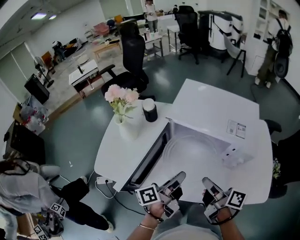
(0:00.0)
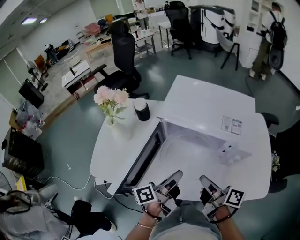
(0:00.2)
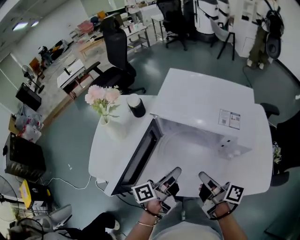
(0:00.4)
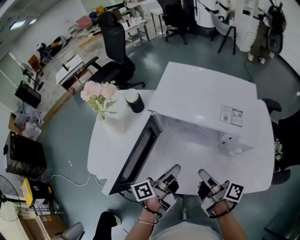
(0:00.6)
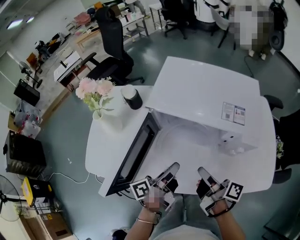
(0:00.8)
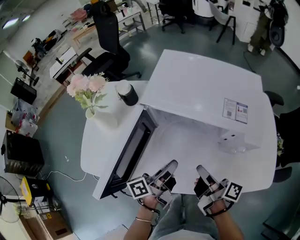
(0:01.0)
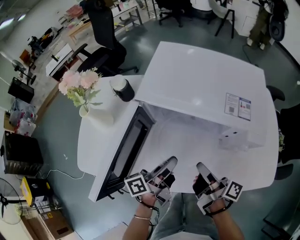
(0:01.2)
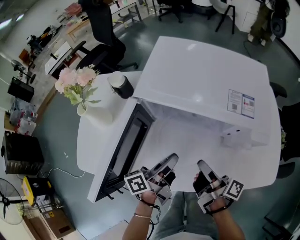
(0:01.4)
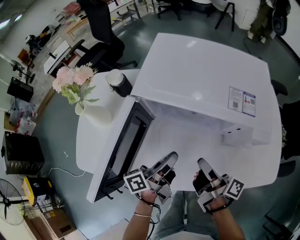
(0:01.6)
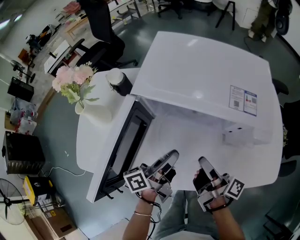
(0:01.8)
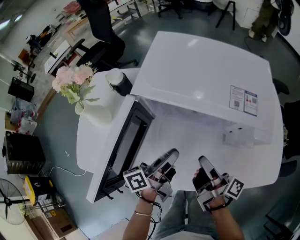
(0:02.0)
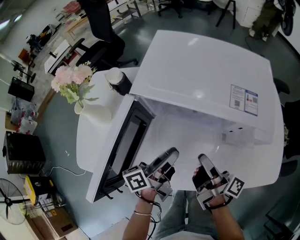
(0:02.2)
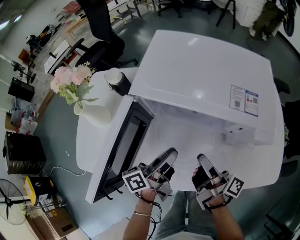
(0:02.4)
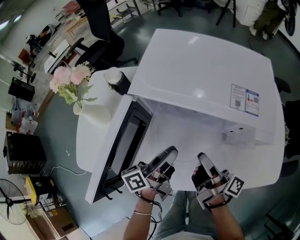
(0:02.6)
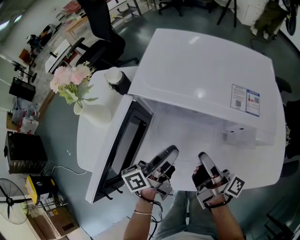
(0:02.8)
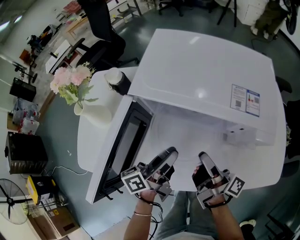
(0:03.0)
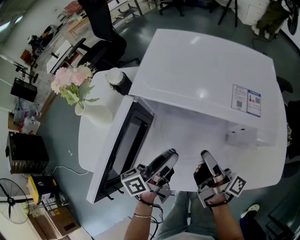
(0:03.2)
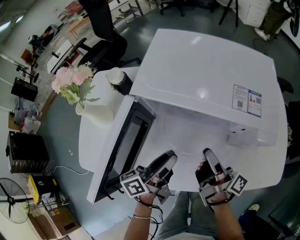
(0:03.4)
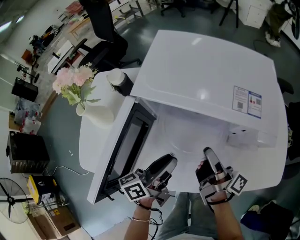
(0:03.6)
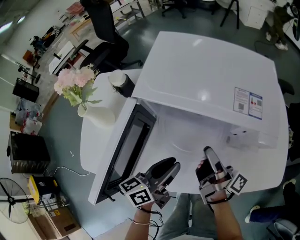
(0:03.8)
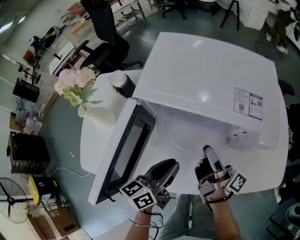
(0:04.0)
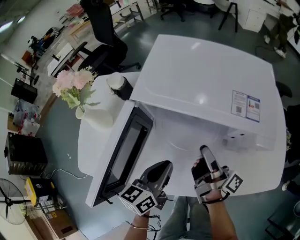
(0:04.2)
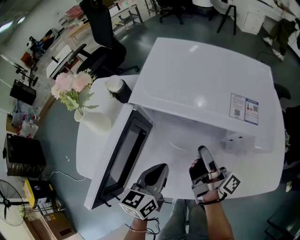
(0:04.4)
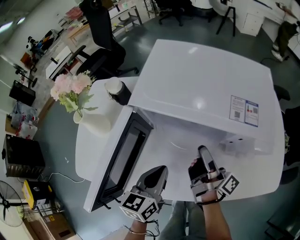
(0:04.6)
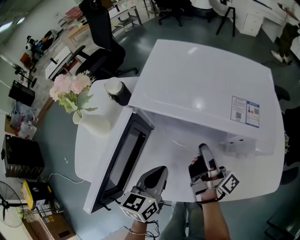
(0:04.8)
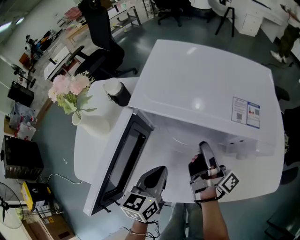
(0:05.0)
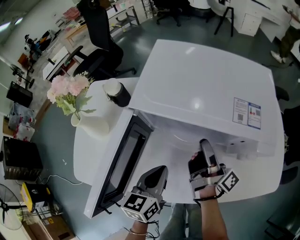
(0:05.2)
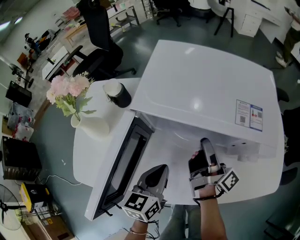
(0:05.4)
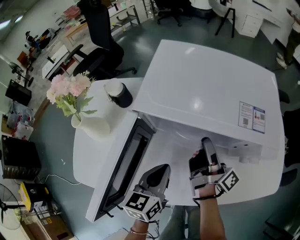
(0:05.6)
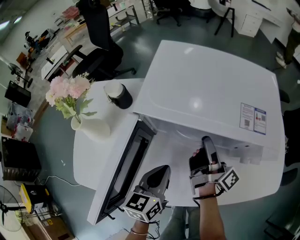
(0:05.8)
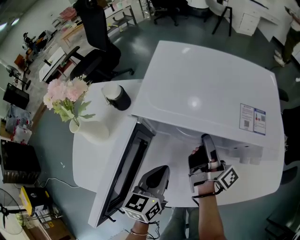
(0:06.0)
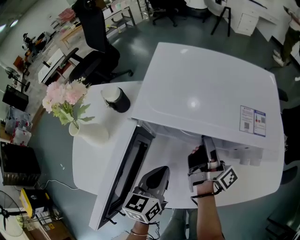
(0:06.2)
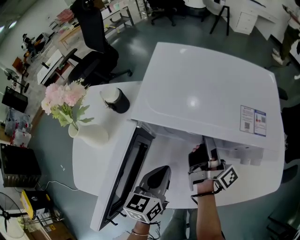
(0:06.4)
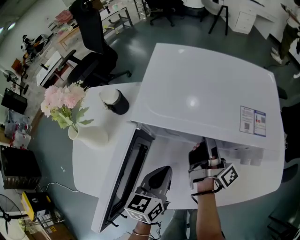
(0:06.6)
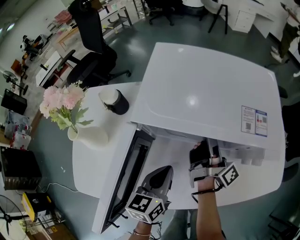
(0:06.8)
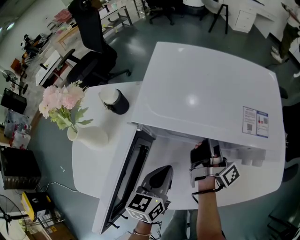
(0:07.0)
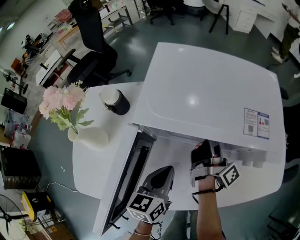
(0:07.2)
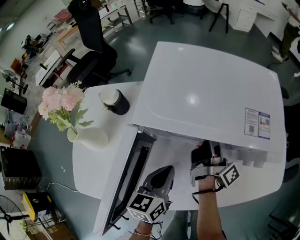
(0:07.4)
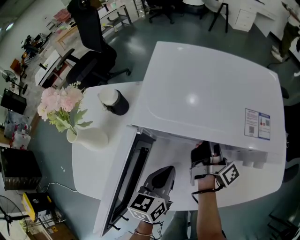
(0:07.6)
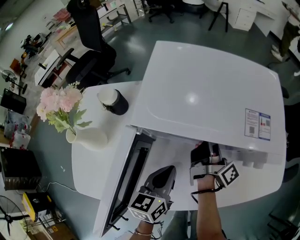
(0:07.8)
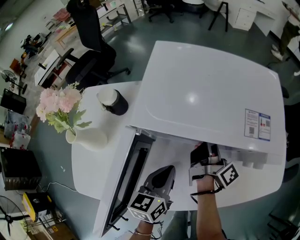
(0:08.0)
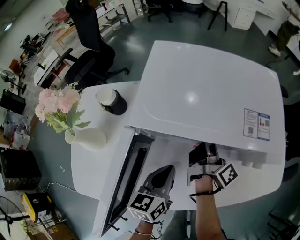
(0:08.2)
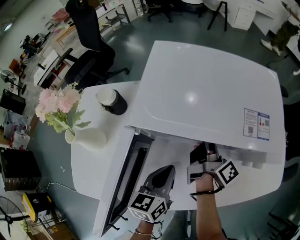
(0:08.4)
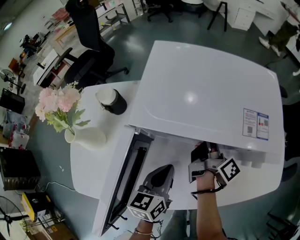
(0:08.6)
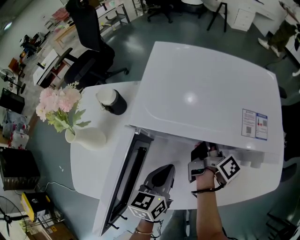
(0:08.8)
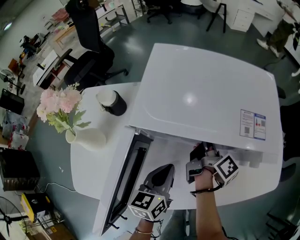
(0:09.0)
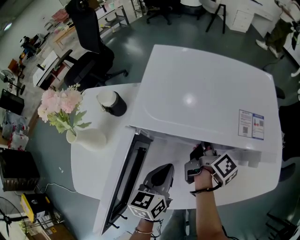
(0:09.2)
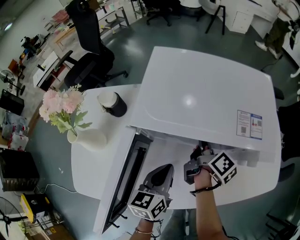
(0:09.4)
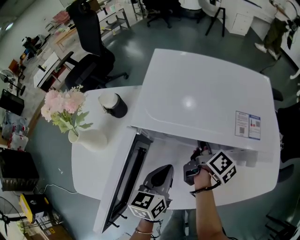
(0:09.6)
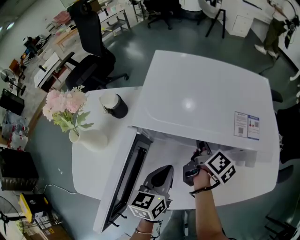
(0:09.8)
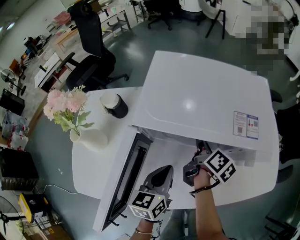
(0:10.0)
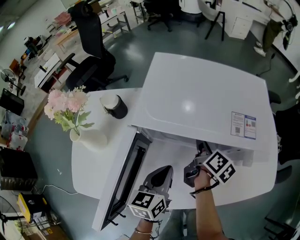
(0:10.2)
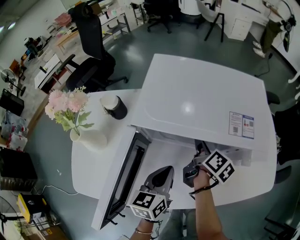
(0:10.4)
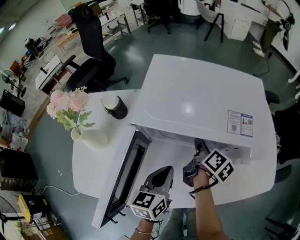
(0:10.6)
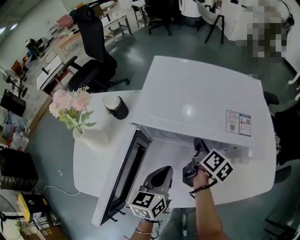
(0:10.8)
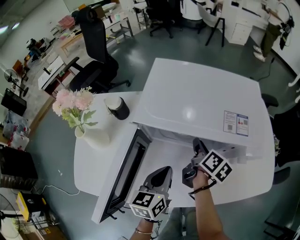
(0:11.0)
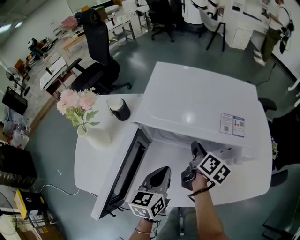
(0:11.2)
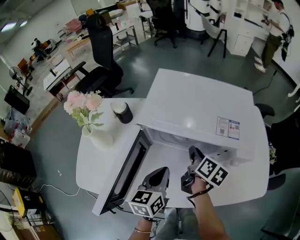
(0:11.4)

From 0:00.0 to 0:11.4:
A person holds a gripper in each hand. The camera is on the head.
From 0:00.0 to 0:01.4: The right gripper moves downward, some 10 cm, and swivels some 30 degrees. Meanwhile the left gripper moves downward and forward, some 10 cm.
From 0:01.4 to 0:02.8: The grippers stay close to where they were, moving slightly.
From 0:02.8 to 0:04.2: The left gripper swivels some 40 degrees, and closes its fingers.
From 0:04.2 to 0:05.6: The right gripper is displaced forward by some 5 cm.
From 0:05.6 to 0:07.2: The grippers move only a little.
From 0:07.2 to 0:08.6: The right gripper swivels about 20 degrees.
From 0:08.6 to 0:10.0: The right gripper changes its angle by about 30 degrees.
From 0:10.0 to 0:11.4: The right gripper shifts by some 5 cm.

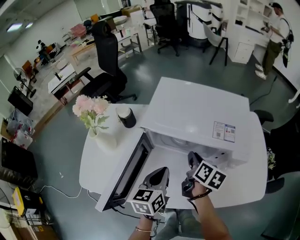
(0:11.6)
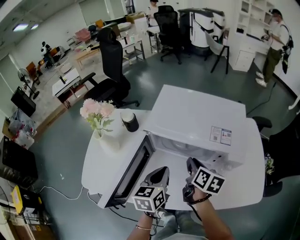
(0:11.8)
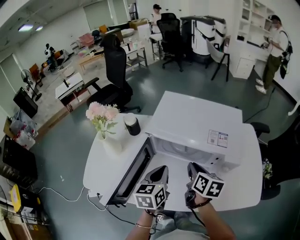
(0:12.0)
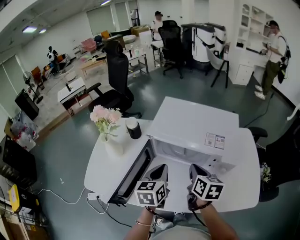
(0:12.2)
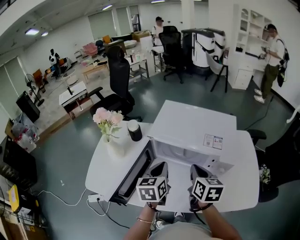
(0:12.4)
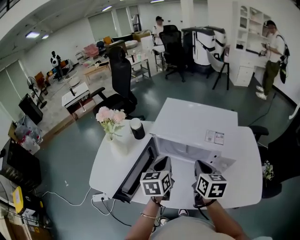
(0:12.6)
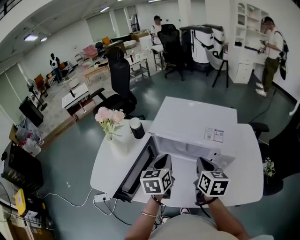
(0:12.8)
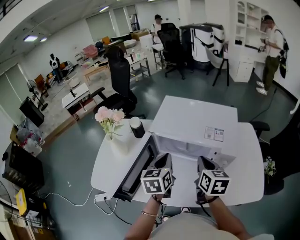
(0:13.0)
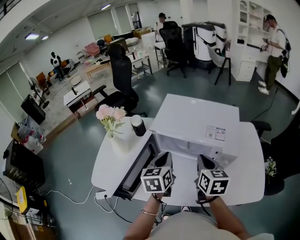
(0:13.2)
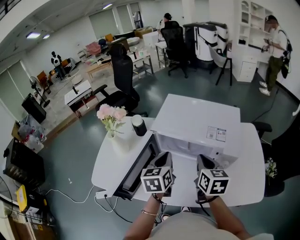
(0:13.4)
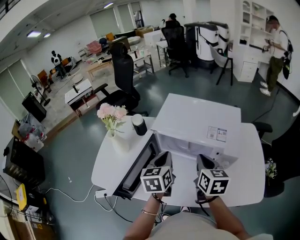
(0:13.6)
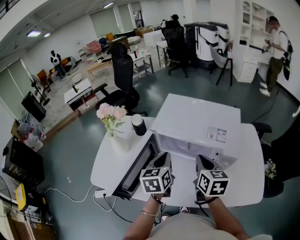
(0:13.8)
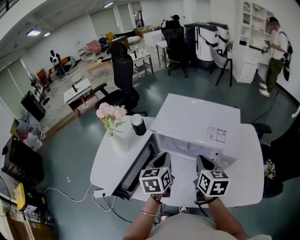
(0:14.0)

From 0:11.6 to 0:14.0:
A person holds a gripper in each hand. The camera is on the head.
From 0:11.6 to 0:12.8: The left gripper travels upward by some 10 cm. The right gripper shifts about 10 cm upward and backward, and turns by some 30 degrees.
From 0:12.8 to 0:14.0: Neither gripper changes place.

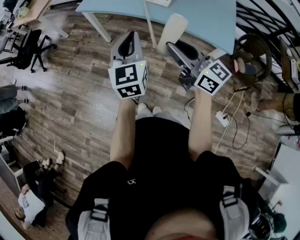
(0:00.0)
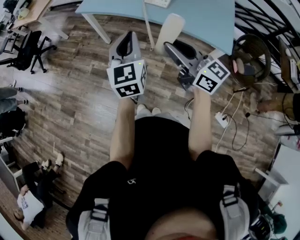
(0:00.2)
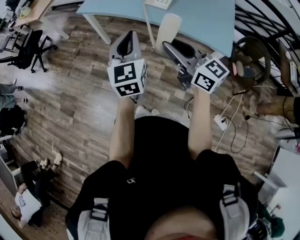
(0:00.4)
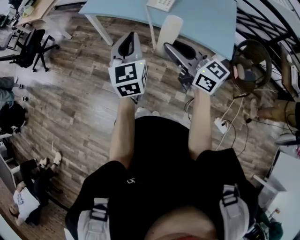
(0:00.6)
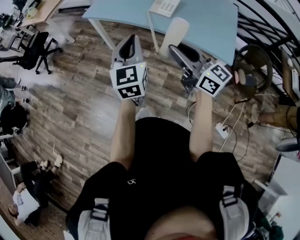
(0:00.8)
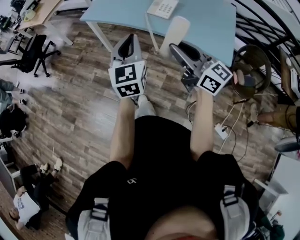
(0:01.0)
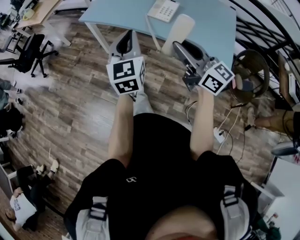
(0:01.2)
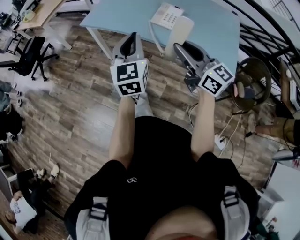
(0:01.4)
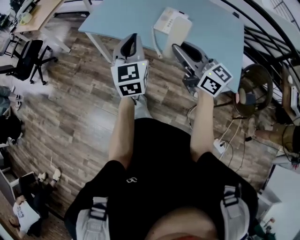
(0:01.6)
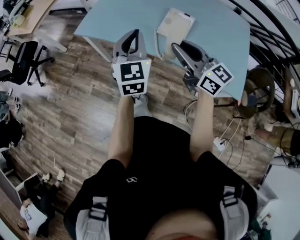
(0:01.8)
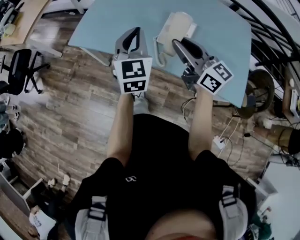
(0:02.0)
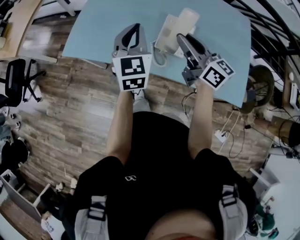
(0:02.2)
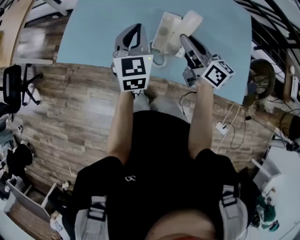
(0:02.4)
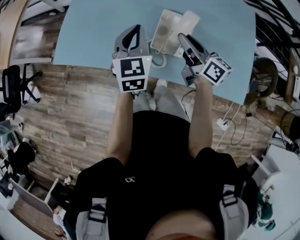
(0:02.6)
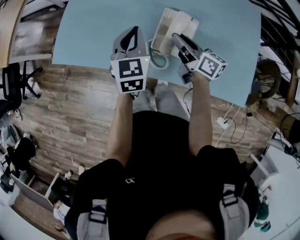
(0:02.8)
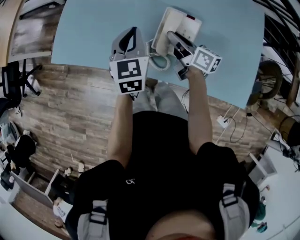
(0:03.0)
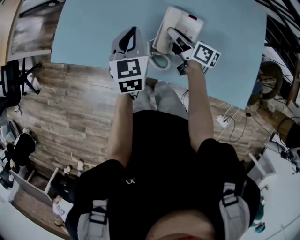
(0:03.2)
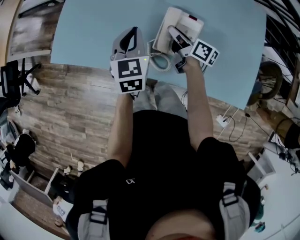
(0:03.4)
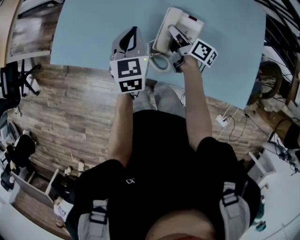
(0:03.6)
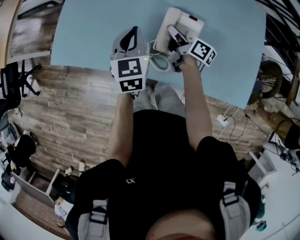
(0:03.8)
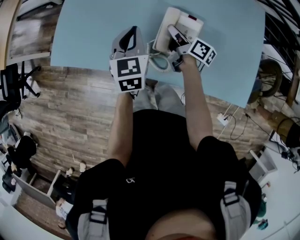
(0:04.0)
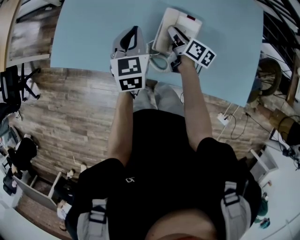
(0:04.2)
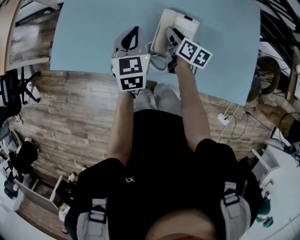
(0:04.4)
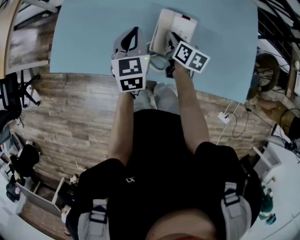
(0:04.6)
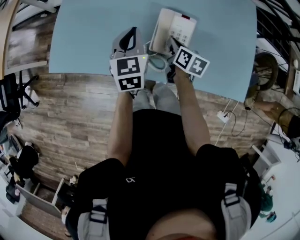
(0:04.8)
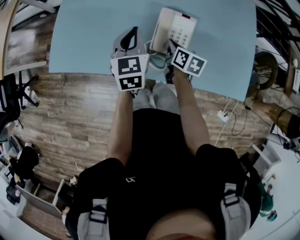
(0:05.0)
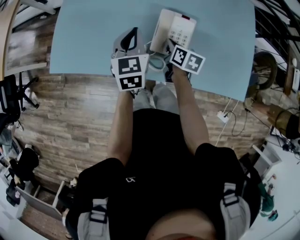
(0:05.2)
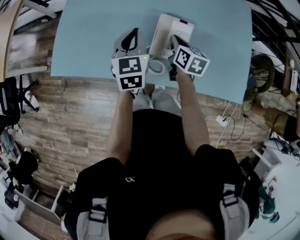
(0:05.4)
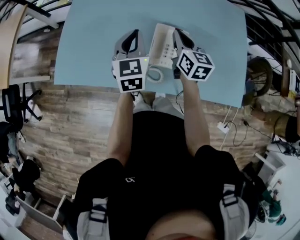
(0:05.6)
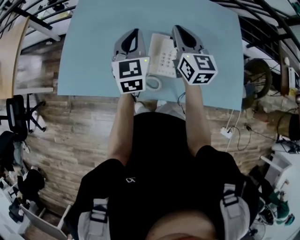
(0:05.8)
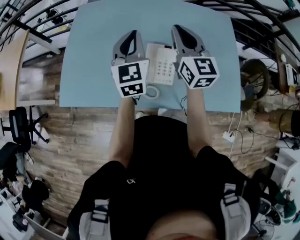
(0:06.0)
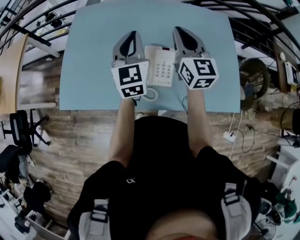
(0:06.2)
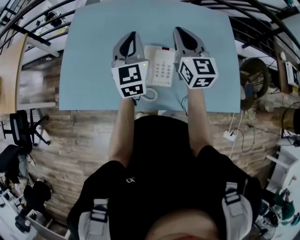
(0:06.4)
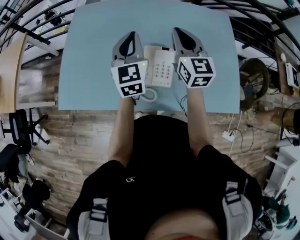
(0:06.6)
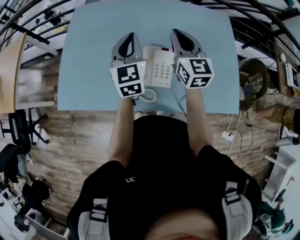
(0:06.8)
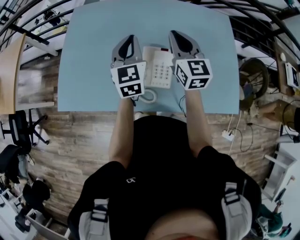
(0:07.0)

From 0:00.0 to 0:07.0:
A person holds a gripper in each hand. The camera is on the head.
From 0:00.0 to 0:01.4: The right gripper moves forward and to the right, approximately 15 cm; the left gripper shifts roughly 10 cm forward.
From 0:01.4 to 0:02.8: Both grippers are carried forward, some 50 cm. The right gripper swivels about 40 degrees. Meanwhile the left gripper changes its angle by approximately 20 degrees.
From 0:02.8 to 0:04.2: The right gripper travels downward by some 10 cm, and changes its angle by approximately 30 degrees.
From 0:04.2 to 0:05.6: The left gripper goes some 5 cm upward. Meanwhile the right gripper is displaced upward by approximately 15 cm, turns by about 40 degrees, and closes its fingers.
From 0:05.6 to 0:07.0: The right gripper travels upward by roughly 10 cm, and rotates roughly 20 degrees. Meanwhile the left gripper shifts about 10 cm upward, forward and to the right.

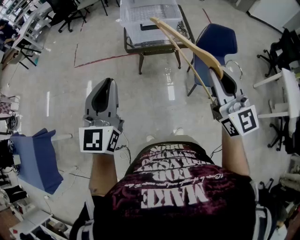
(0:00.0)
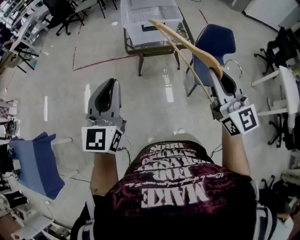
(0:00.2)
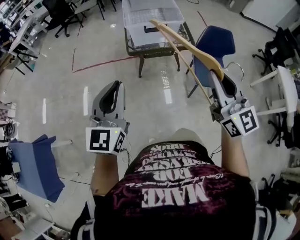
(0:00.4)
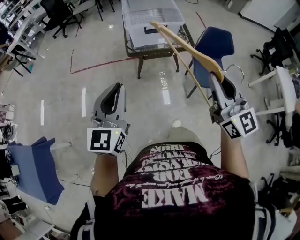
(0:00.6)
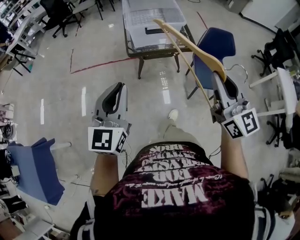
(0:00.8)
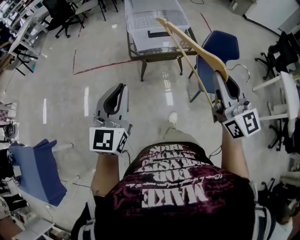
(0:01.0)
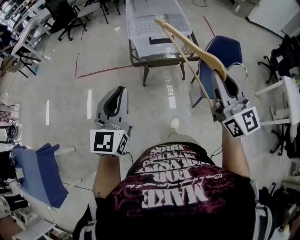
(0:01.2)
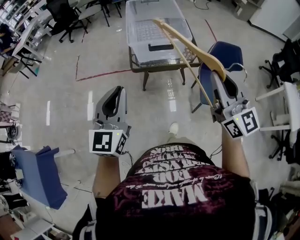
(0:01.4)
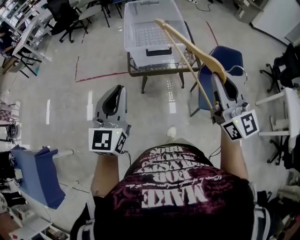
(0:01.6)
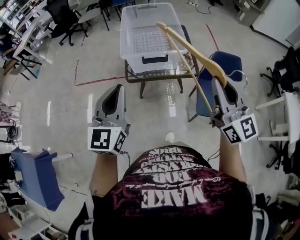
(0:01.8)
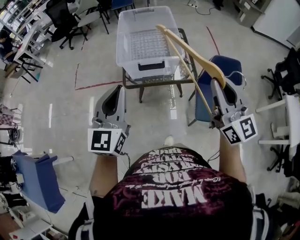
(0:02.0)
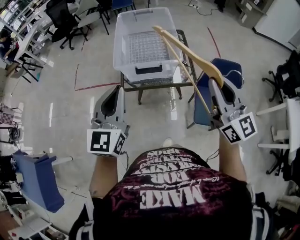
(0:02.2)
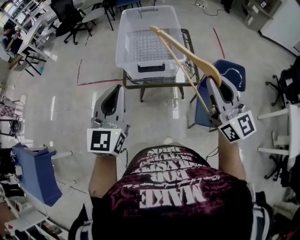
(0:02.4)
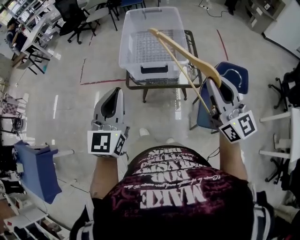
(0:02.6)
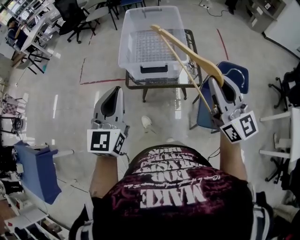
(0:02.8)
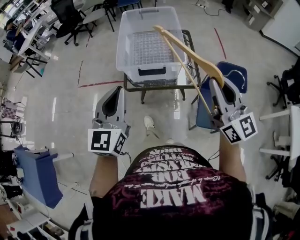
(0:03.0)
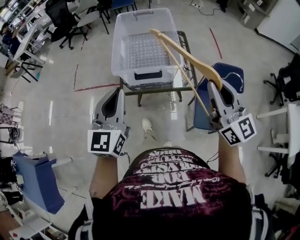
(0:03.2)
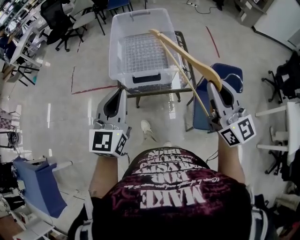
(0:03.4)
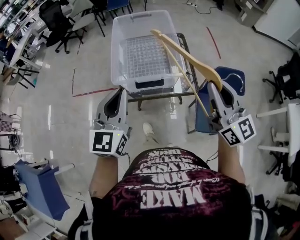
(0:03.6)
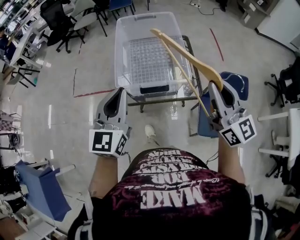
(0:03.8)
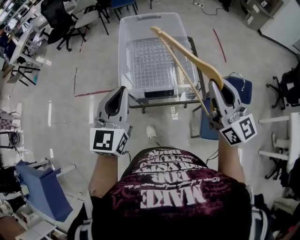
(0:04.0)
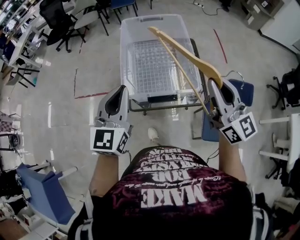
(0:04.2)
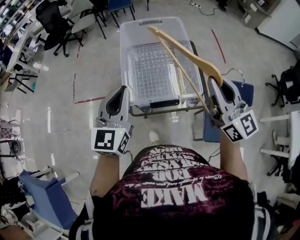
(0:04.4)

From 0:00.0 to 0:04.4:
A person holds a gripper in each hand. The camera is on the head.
From 0:00.0 to 0:01.4: The two grippers go roughly 10 cm forward.
From 0:01.4 to 0:03.0: Both grippers travel together forward and to the right, some 20 cm.
From 0:03.0 to 0:04.4: The two grippers go about 20 cm forward.
